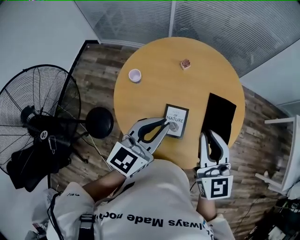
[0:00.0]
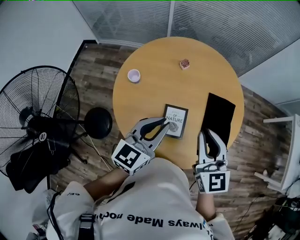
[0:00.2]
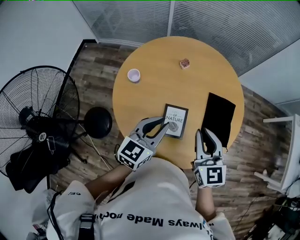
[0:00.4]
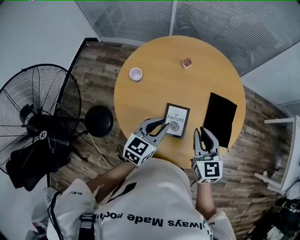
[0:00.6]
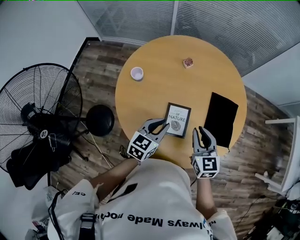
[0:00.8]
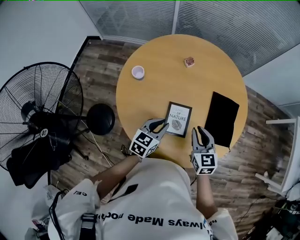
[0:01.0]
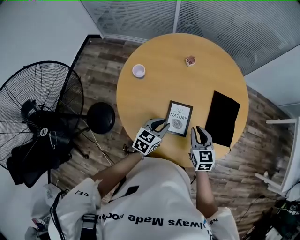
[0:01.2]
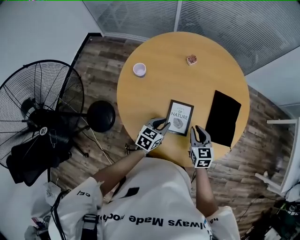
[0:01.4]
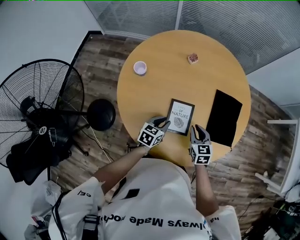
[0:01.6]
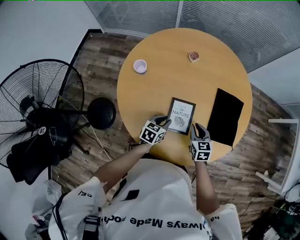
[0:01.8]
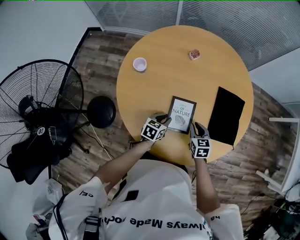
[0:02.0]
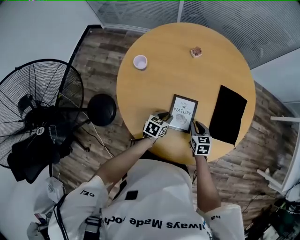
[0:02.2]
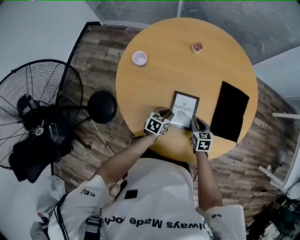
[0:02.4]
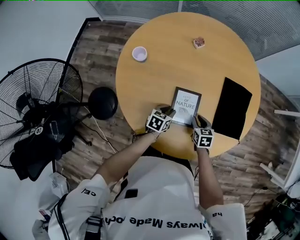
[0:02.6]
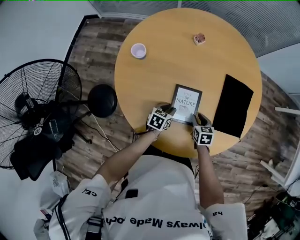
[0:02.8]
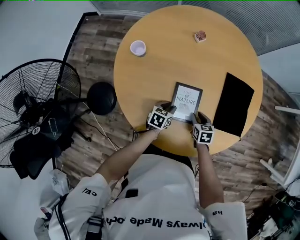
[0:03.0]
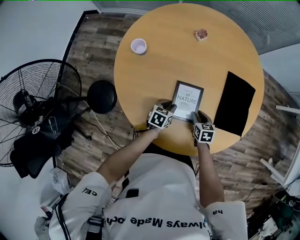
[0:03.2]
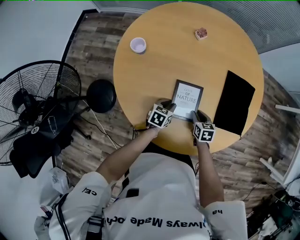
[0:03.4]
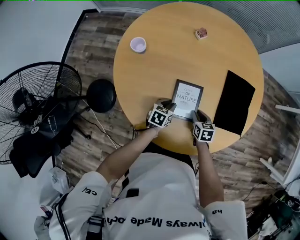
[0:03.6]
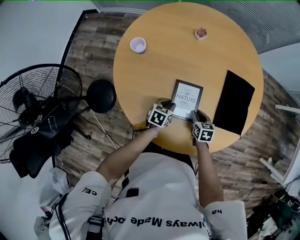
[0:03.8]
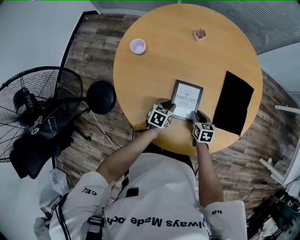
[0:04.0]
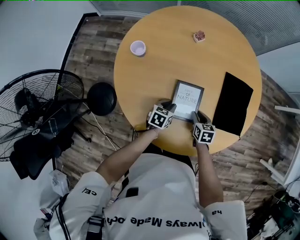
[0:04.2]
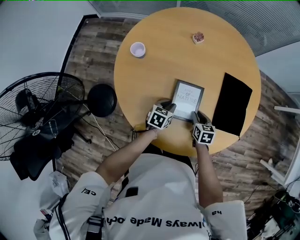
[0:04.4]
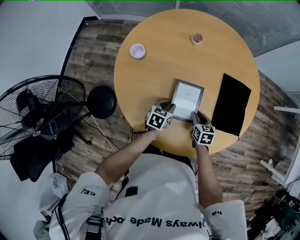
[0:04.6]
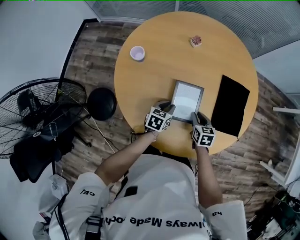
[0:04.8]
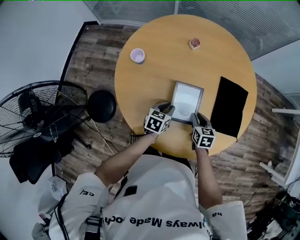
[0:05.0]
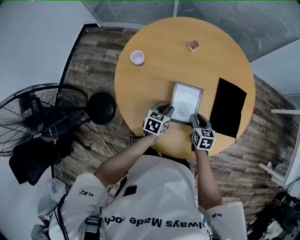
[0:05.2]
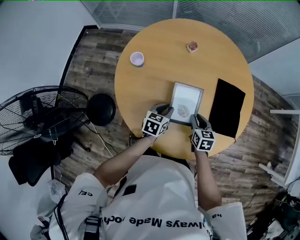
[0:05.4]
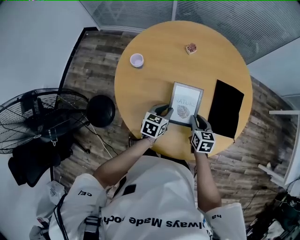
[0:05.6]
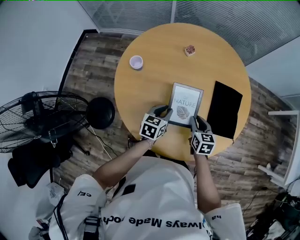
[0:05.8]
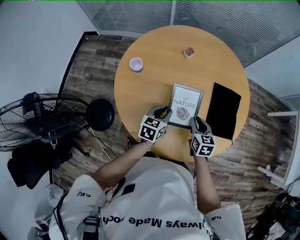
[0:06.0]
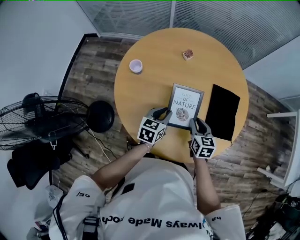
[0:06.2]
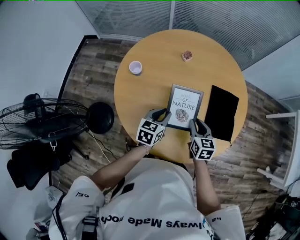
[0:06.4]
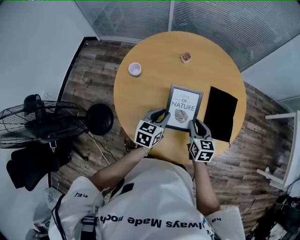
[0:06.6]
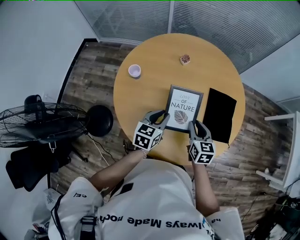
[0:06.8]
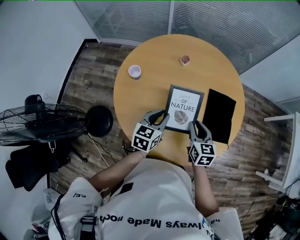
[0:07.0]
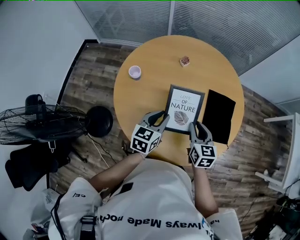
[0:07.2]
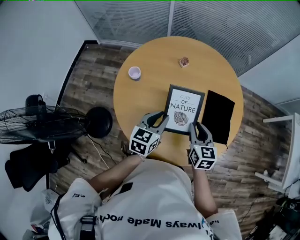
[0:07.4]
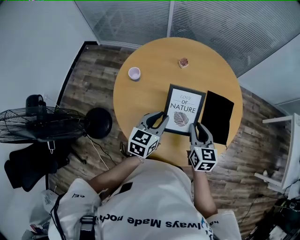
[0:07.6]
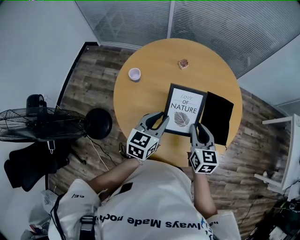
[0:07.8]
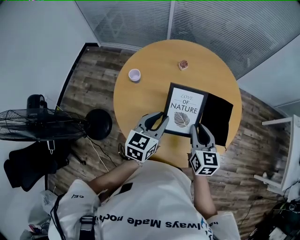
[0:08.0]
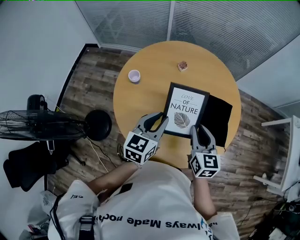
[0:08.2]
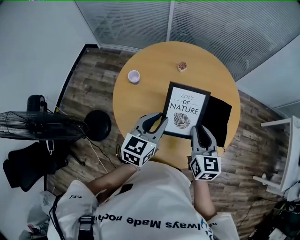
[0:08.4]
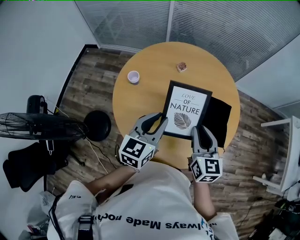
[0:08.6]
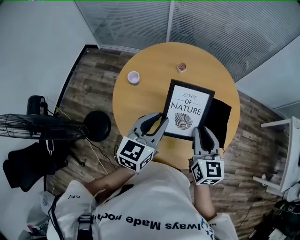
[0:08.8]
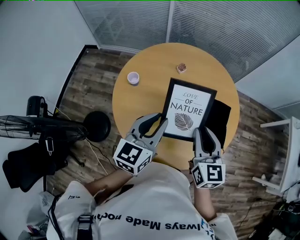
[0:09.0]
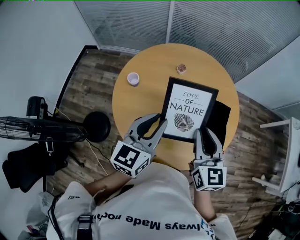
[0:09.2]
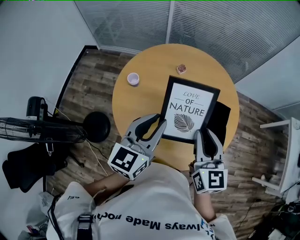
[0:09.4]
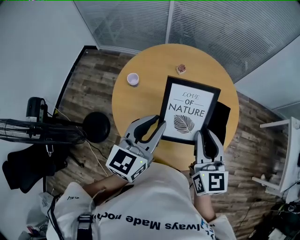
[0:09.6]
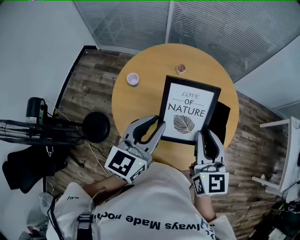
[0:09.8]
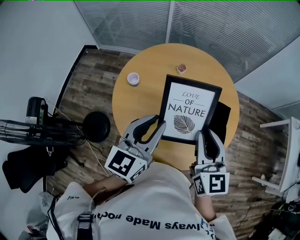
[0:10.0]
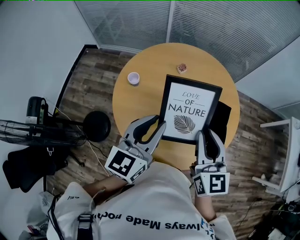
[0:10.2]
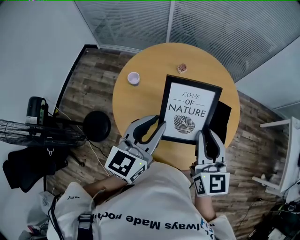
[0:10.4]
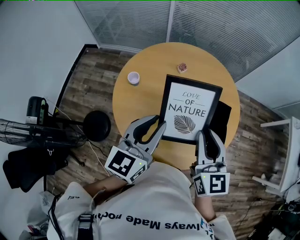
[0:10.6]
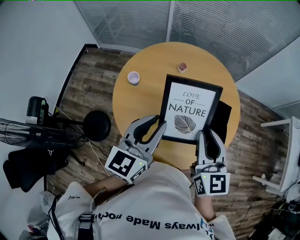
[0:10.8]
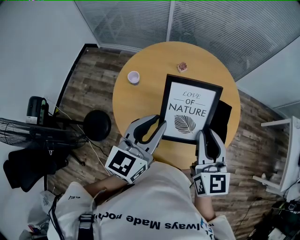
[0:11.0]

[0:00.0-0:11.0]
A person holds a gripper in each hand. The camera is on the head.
0:00.0 to 0:01.6: Both grippers travel together downward, some 30 cm. The right gripper changes its angle by some 30 degrees. Meanwhile the left gripper changes its angle by some 30 degrees.
0:01.6 to 0:03.2: The grippers both shift downward by about 15 cm.
0:03.2 to 0:04.8: Both grippers travel together upward, some 5 cm.
0:04.8 to 0:06.2: Both grippers travel together upward, approximately 10 cm.
0:06.2 to 0:07.8: The grippers both shift upward by about 15 cm.
0:07.8 to 0:09.4: Both grippers move upward, about 15 cm.
0:09.4 to 0:11.0: The grippers move only a little.

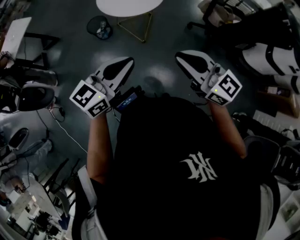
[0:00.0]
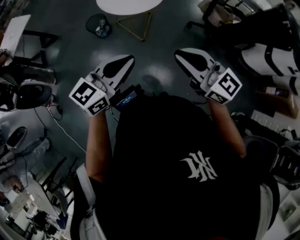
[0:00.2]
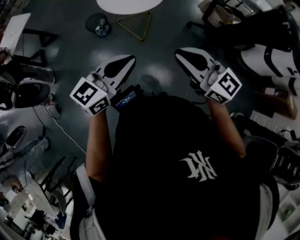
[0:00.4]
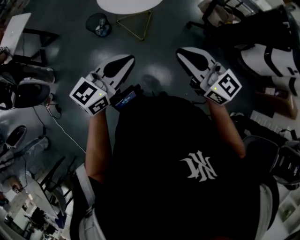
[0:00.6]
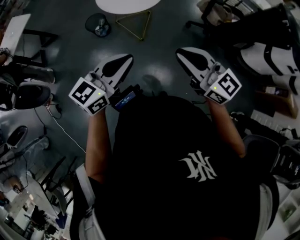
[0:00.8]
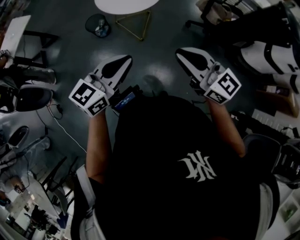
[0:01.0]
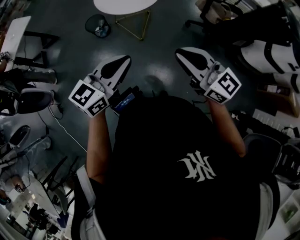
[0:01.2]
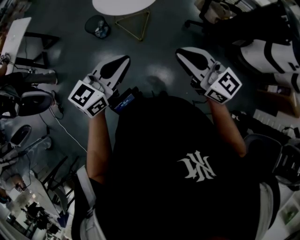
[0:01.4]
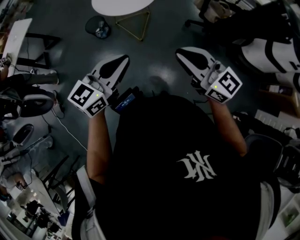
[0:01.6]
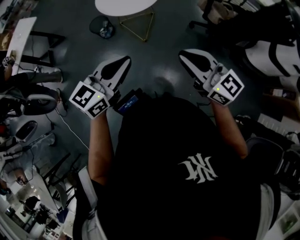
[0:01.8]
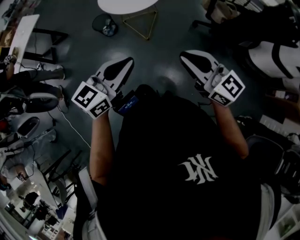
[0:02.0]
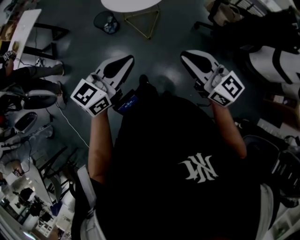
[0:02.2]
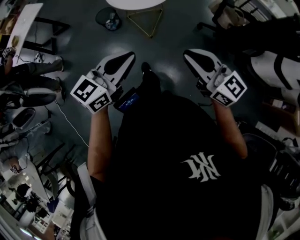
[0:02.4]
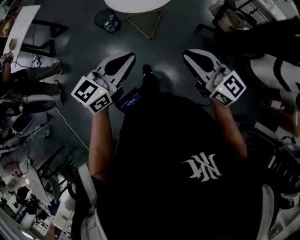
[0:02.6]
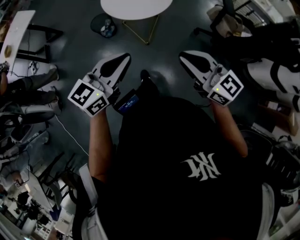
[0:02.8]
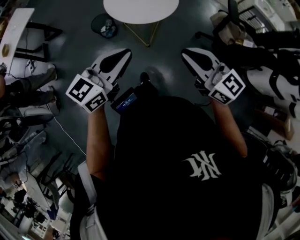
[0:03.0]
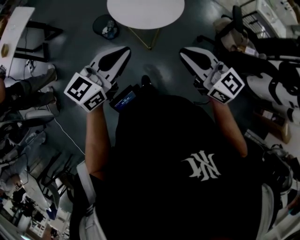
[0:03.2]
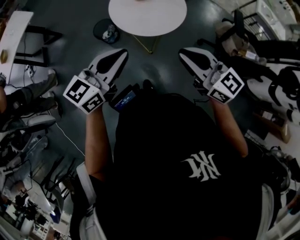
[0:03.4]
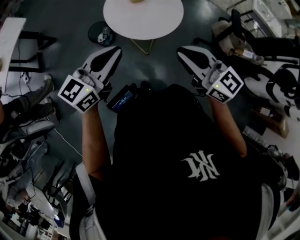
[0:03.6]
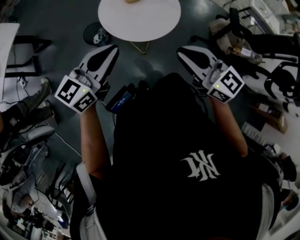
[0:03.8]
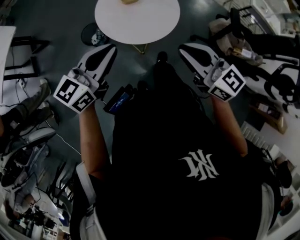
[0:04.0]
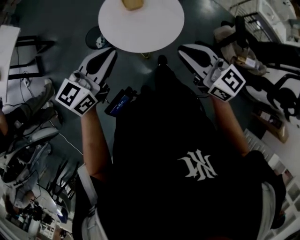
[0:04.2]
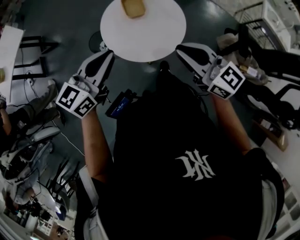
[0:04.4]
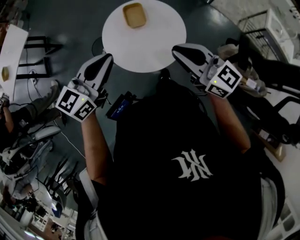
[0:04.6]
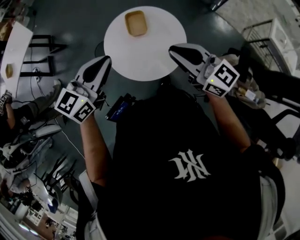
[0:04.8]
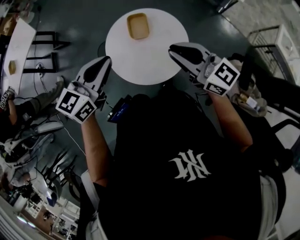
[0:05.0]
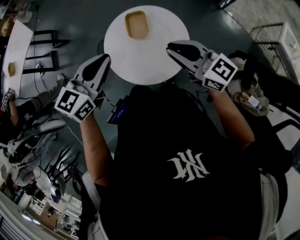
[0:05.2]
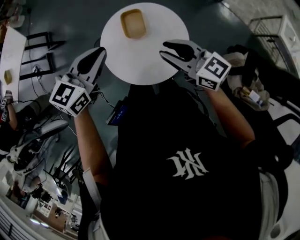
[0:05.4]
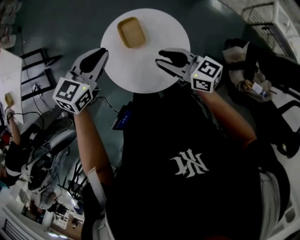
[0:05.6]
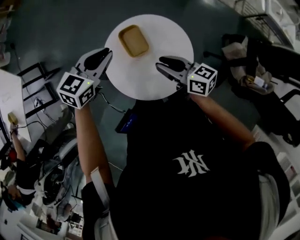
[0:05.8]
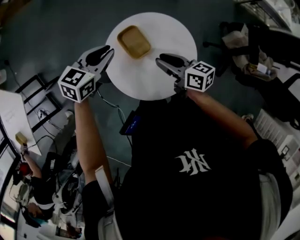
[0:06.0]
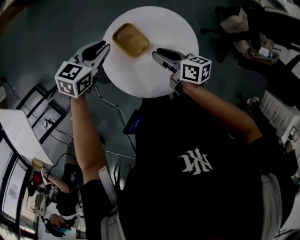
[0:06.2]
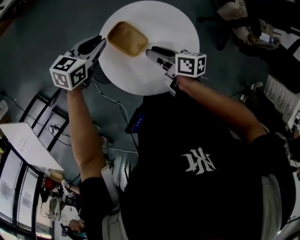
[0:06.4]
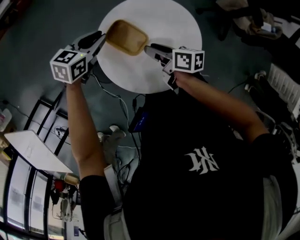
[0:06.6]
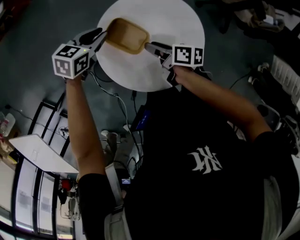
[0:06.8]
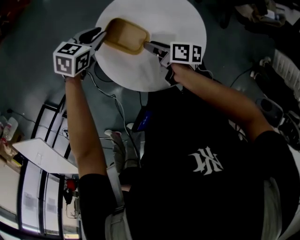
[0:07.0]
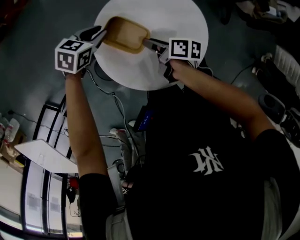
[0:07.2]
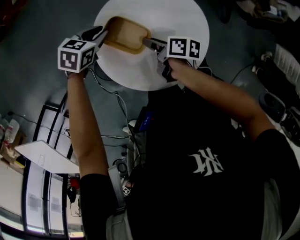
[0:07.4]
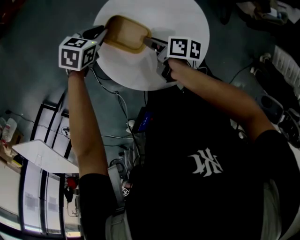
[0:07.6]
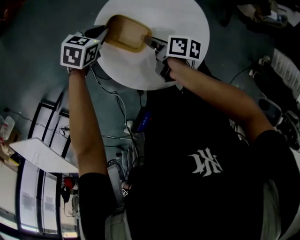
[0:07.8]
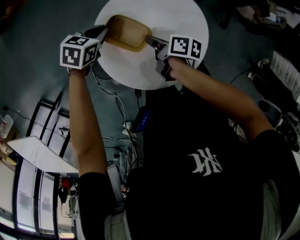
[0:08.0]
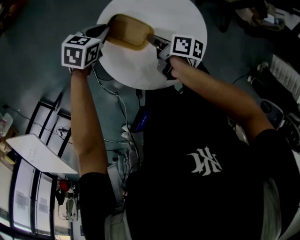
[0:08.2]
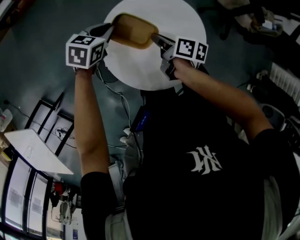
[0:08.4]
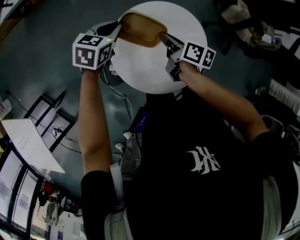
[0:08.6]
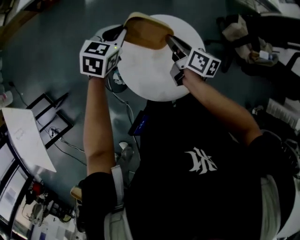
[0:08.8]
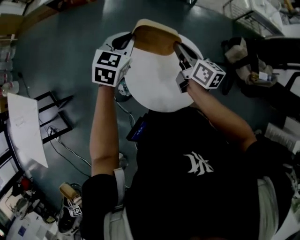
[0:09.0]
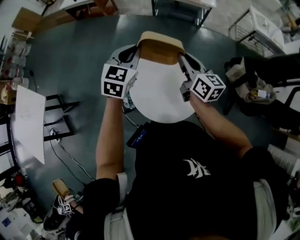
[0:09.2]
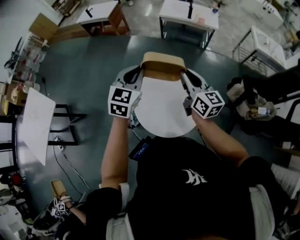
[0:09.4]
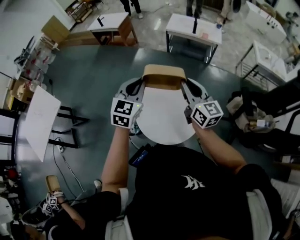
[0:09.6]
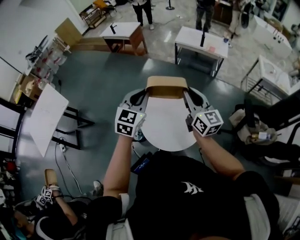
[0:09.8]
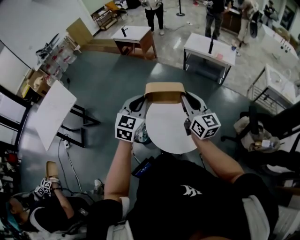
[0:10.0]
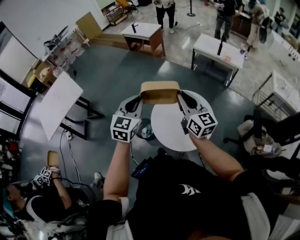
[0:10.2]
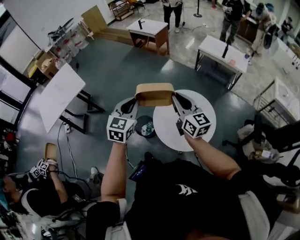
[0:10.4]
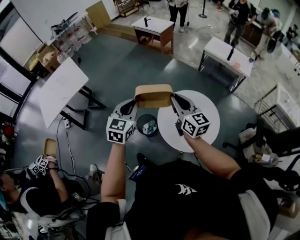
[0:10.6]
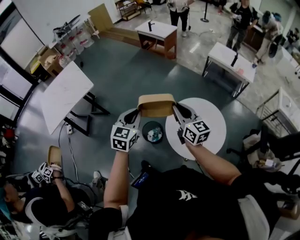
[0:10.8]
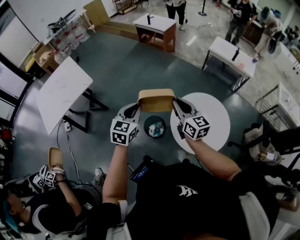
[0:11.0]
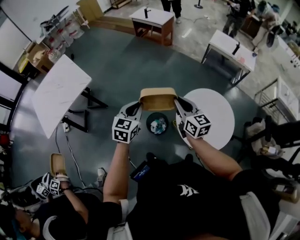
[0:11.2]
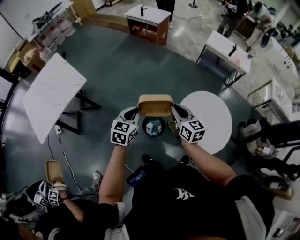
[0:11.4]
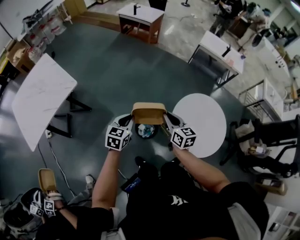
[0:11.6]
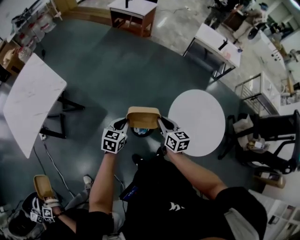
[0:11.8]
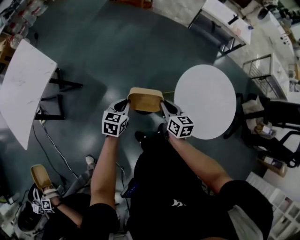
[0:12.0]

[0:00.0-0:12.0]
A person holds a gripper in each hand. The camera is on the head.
0:00.0 to 0:01.6: The right gripper goes approximately 5 cm to the right.
0:01.6 to 0:03.0: The grippers both shift forward by roughly 15 cm.
0:03.0 to 0:04.4: Both grippers travel together forward, some 25 cm.
0:04.4 to 0:06.0: The right gripper ends up some 30 cm from where it was, rolls clockwise, seen from behind, by roughly 40 degrees, and opens its fingers. The left gripper ends up roughly 35 cm from where it was, and rotates roughly 40 degrees.
0:06.0 to 0:07.6: Both grippers travel together downward, roughly 20 cm. The left gripper changes its angle by some 30 degrees; the right gripper rotates around the line of its fingers by approximately 40 degrees, clockwise from behind.
0:07.6 to 0:09.0: The grippers both shift upward by approximately 25 cm. The right gripper rotates approximately 50 degrees; the left gripper swivels approximately 50 degrees.
0:09.0 to 0:10.4: The right gripper moves some 25 cm, and changes its angle by some 40 degrees. The left gripper moves approximately 30 cm, and turns by some 40 degrees.
0:10.4 to 0:12.0: Both grippers move downward and to the left, about 40 cm. The right gripper points its fingers some 40 degrees further downward. Meanwhile the left gripper swivels some 30 degrees.

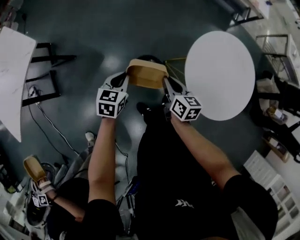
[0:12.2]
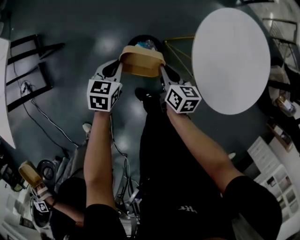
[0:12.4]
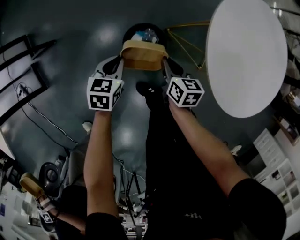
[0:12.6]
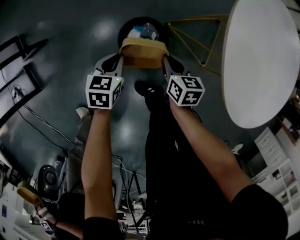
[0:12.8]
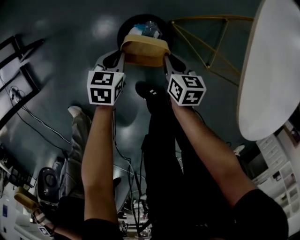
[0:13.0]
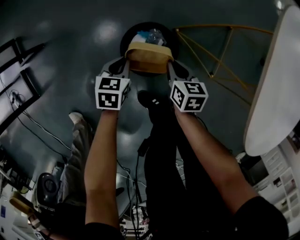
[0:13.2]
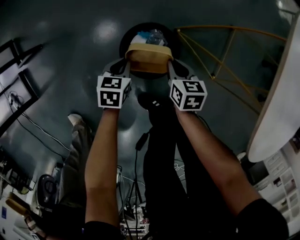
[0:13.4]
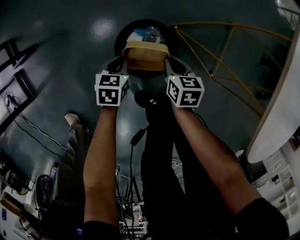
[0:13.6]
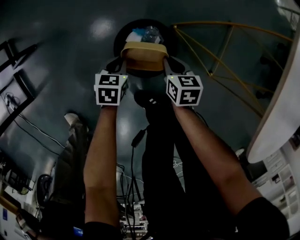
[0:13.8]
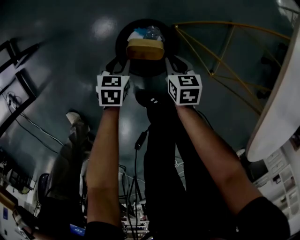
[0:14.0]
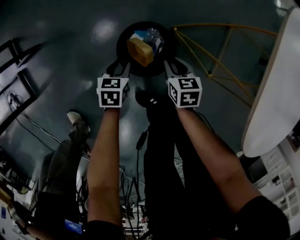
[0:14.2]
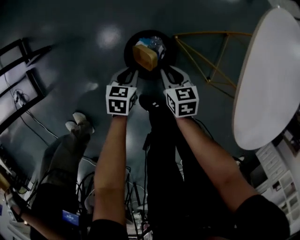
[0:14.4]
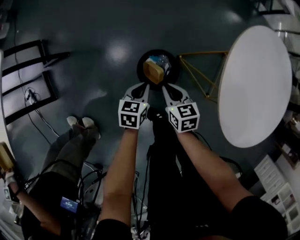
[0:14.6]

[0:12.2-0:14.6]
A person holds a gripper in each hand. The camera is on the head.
0:12.2 to 0:13.4: The grippers both shift downward by some 35 cm. The right gripper turns by roughly 20 degrees.
0:13.4 to 0:14.6: The right gripper shifts about 15 cm upward and to the left. The left gripper heads upward, covering approximately 15 cm, and opens, then closes again.
